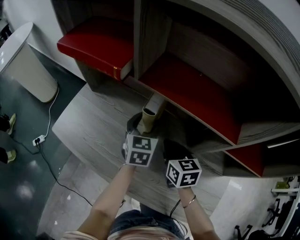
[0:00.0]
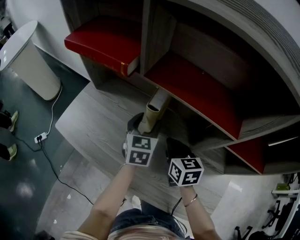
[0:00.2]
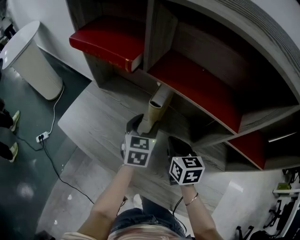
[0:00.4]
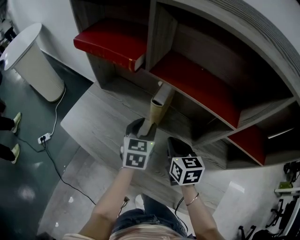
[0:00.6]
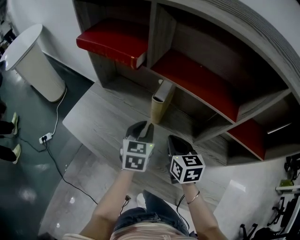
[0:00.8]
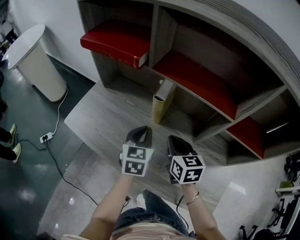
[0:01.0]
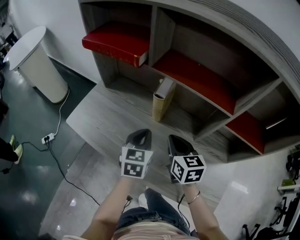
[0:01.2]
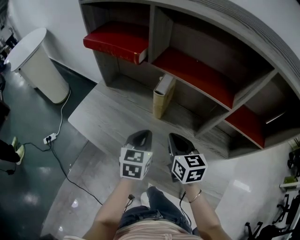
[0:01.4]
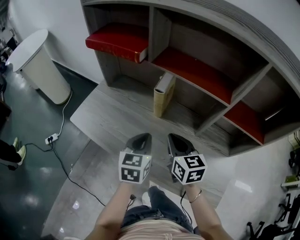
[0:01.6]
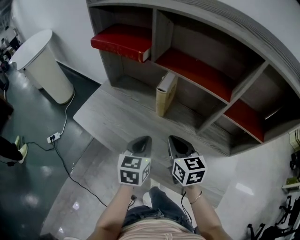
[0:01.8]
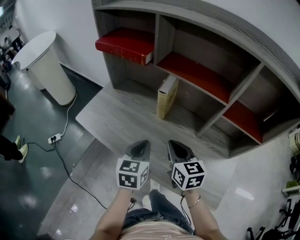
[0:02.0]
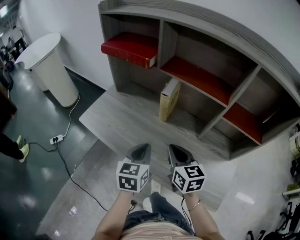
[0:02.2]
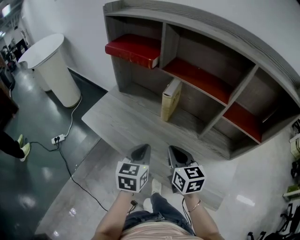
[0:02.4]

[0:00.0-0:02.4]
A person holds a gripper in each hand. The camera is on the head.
0:00.0 to 0:01.2: The left gripper is displaced backward by about 15 cm, and closes up; the right gripper travels backward by approximately 5 cm.
0:01.2 to 0:02.4: Both grippers move backward, about 10 cm.

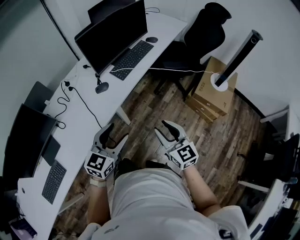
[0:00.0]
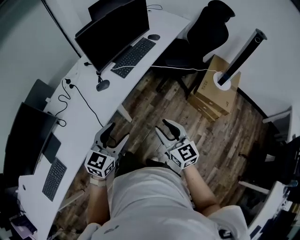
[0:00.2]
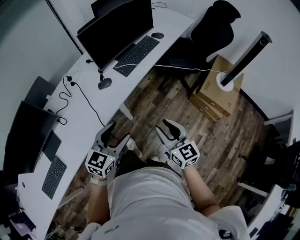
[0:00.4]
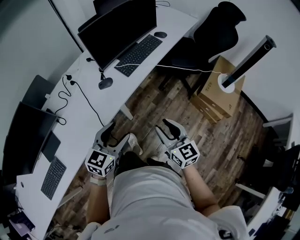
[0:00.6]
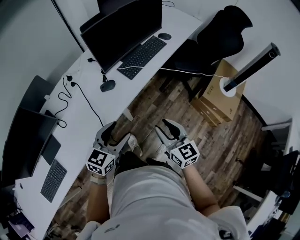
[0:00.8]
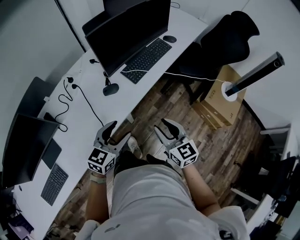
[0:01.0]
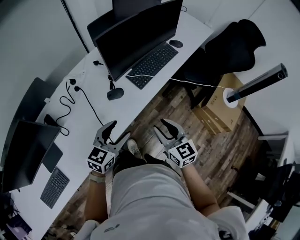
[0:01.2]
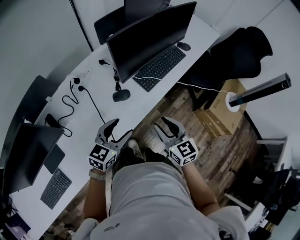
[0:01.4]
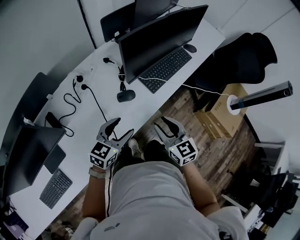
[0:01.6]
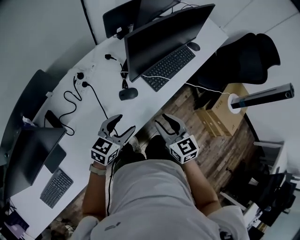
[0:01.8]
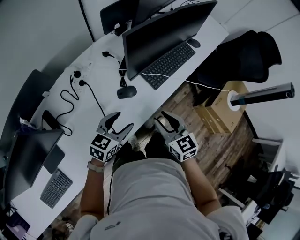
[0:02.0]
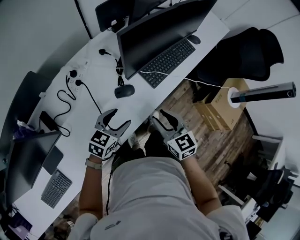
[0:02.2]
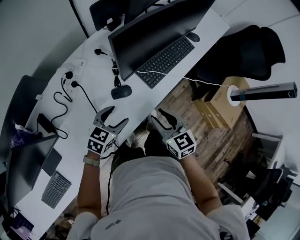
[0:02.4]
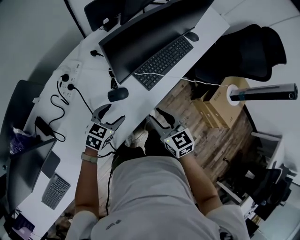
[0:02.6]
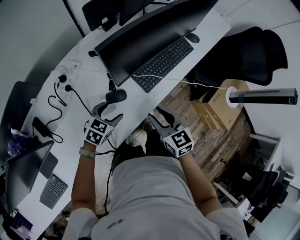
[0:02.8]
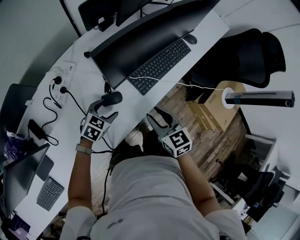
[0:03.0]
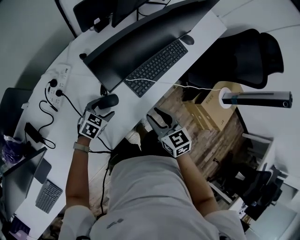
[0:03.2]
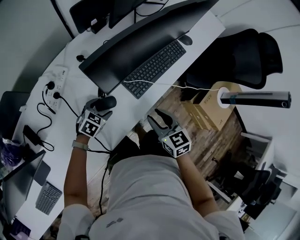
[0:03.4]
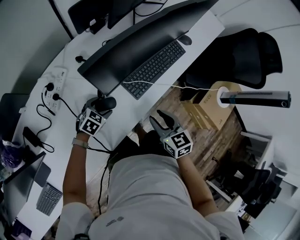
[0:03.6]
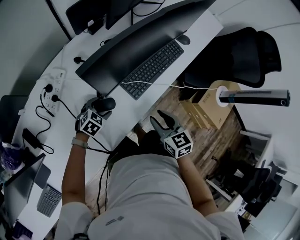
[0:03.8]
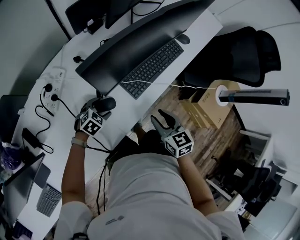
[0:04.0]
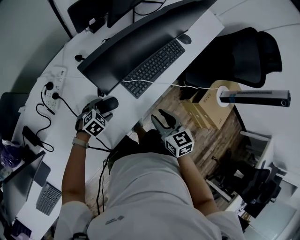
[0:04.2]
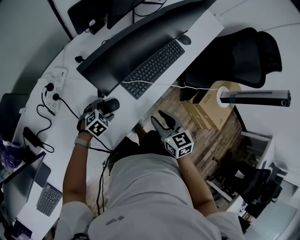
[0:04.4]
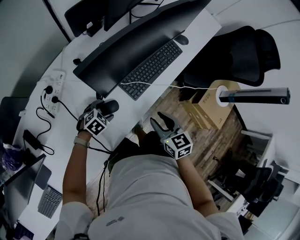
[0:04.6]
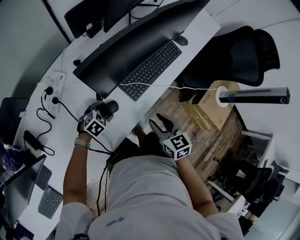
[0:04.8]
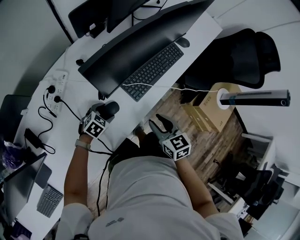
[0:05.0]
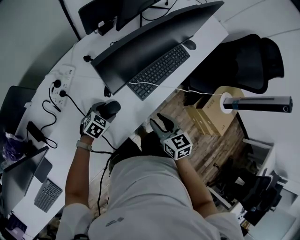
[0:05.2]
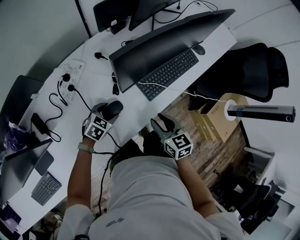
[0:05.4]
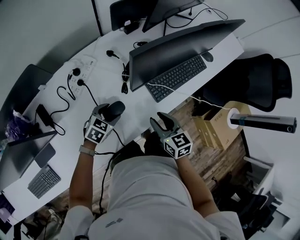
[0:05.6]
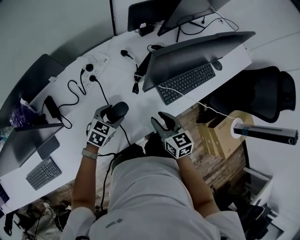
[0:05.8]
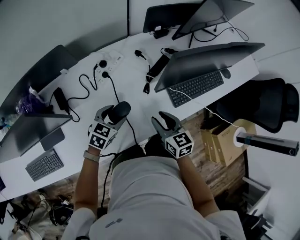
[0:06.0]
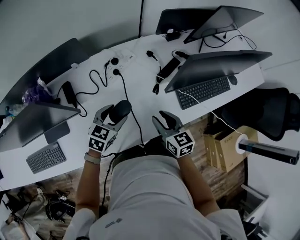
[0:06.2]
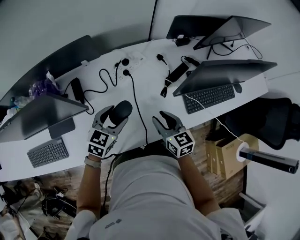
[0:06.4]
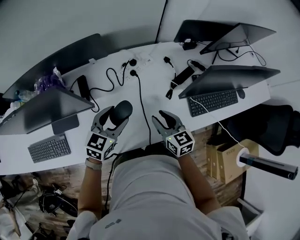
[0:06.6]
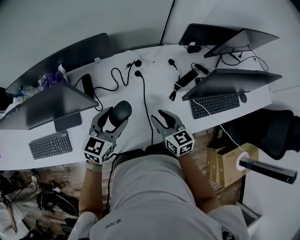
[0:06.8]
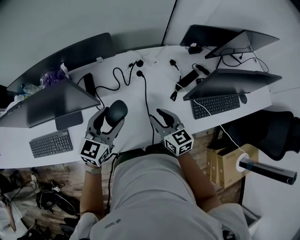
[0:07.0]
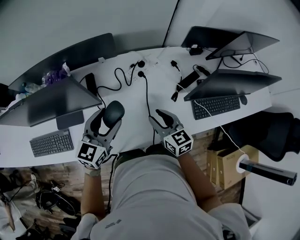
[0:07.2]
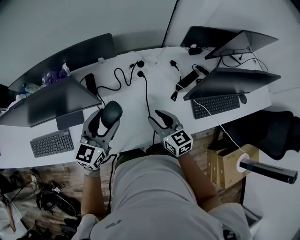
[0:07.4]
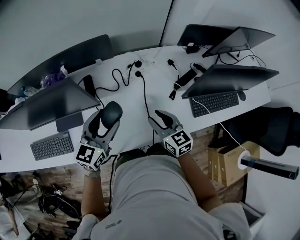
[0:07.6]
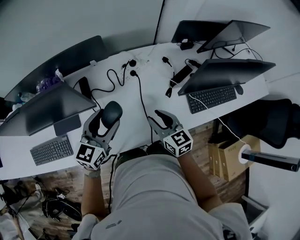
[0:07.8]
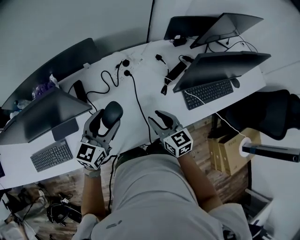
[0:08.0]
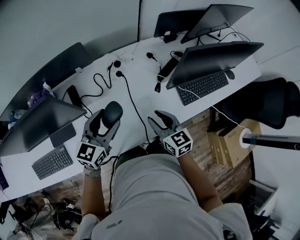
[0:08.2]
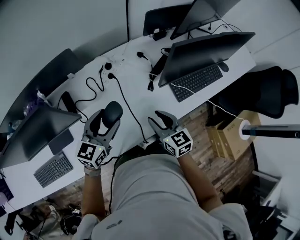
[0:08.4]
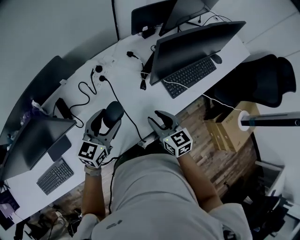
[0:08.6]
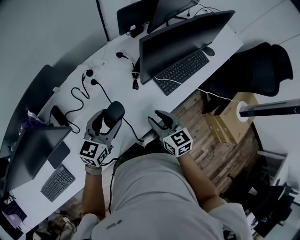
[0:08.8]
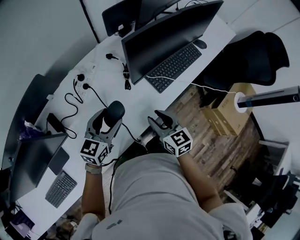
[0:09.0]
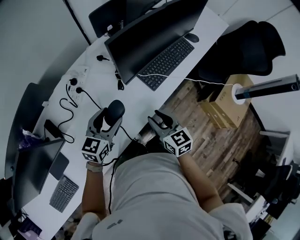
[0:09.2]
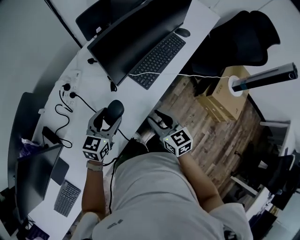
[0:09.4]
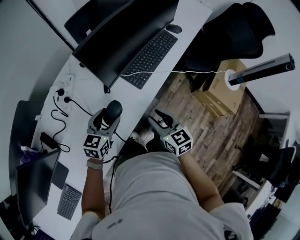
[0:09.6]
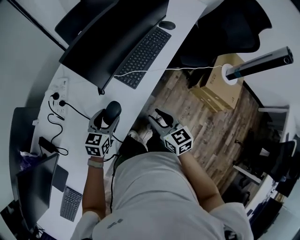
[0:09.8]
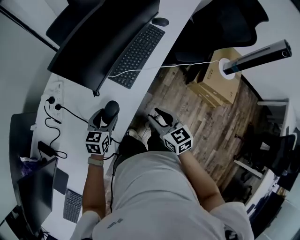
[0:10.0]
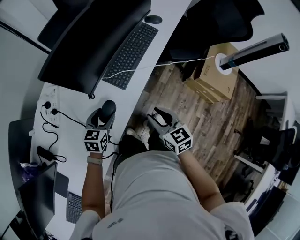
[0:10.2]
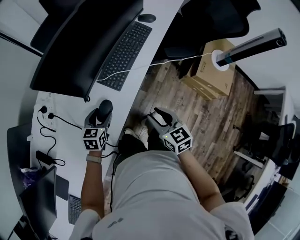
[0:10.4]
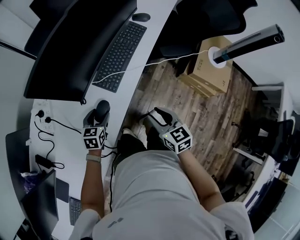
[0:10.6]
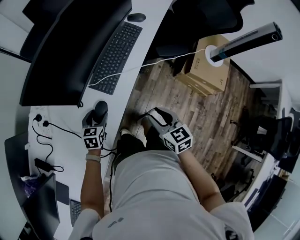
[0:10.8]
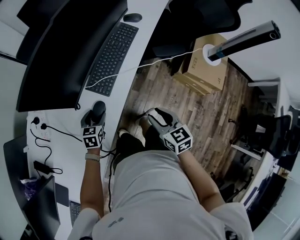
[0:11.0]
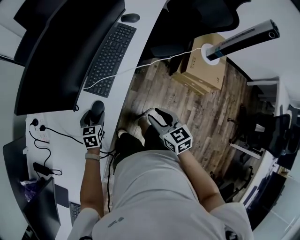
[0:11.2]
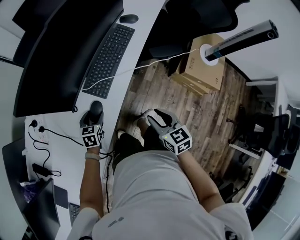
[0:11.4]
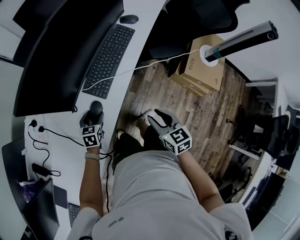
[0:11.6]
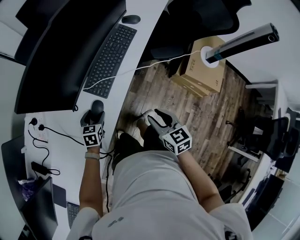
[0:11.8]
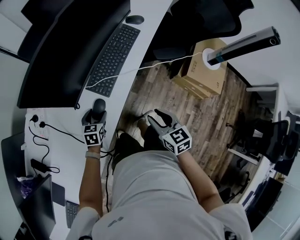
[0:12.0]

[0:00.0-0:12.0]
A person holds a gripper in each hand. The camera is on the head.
0:00.0 to 0:01.6: The left gripper is displaced forward, to the left and downward by some 25 cm. The right gripper moves forward and to the left, about 30 cm.
0:01.6 to 0:03.0: The right gripper heads forward and downward, covering roughly 15 cm, while the left gripper moves downward and forward, roughly 20 cm, and rotates about 30 degrees.
0:03.0 to 0:04.4: The left gripper travels downward by approximately 5 cm, and changes its angle by roughly 20 degrees. The right gripper moves to the right, some 5 cm.
0:04.4 to 0:06.0: The right gripper changes place by roughly 15 cm, and turns by some 20 degrees, while the left gripper changes place by some 20 cm, and swivels roughly 40 degrees.
0:06.0 to 0:07.6: The right gripper heads to the left, covering roughly 15 cm. Meanwhile the left gripper moves upward and to the left, about 20 cm, and angles its fingers upward, by approximately 30 degrees.
0:07.6 to 0:09.0: The right gripper moves roughly 15 cm, and rotates approximately 30 degrees, while the left gripper ends up about 20 cm from where it was, and changes its angle by about 30 degrees.
0:09.0 to 0:10.4: The left gripper heads downward, to the right and forward, covering some 20 cm, and swivels approximately 20 degrees, while the right gripper goes roughly 15 cm to the right, and changes its angle by some 20 degrees.
0:10.4 to 0:12.0: The right gripper travels to the right by roughly 5 cm. Meanwhile the left gripper is displaced downward by about 5 cm.

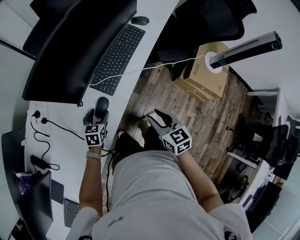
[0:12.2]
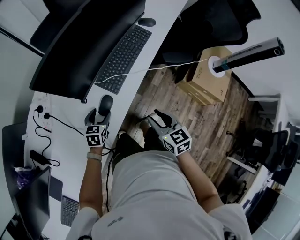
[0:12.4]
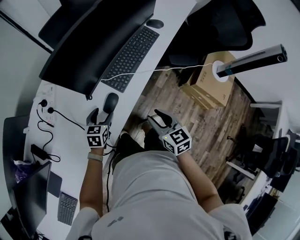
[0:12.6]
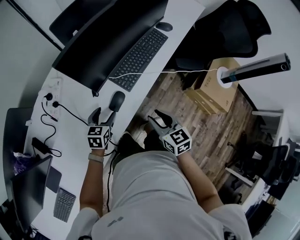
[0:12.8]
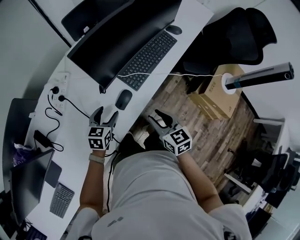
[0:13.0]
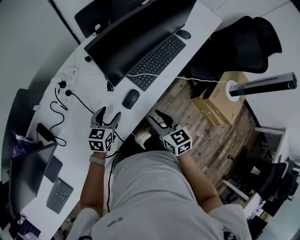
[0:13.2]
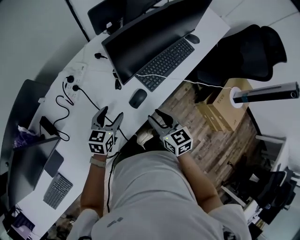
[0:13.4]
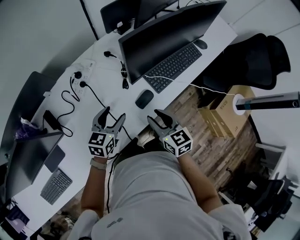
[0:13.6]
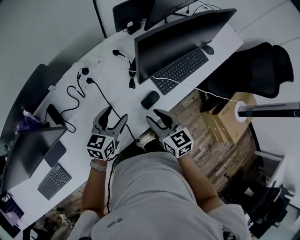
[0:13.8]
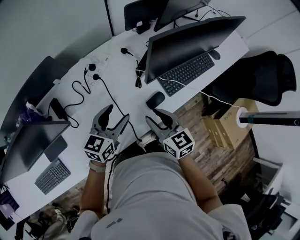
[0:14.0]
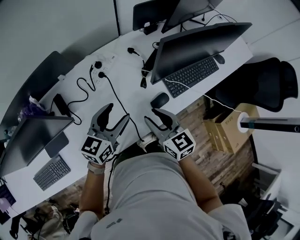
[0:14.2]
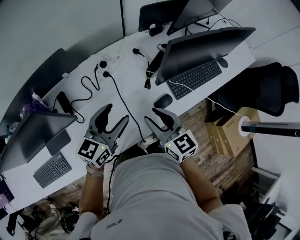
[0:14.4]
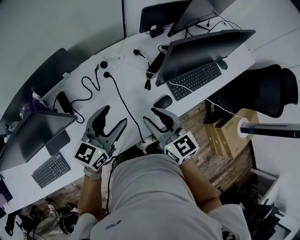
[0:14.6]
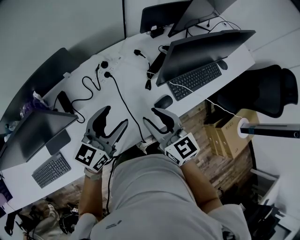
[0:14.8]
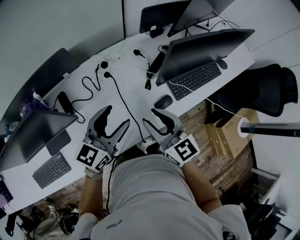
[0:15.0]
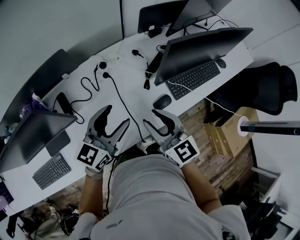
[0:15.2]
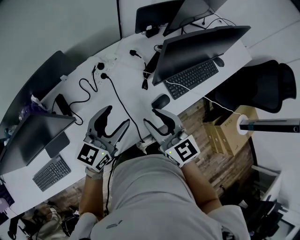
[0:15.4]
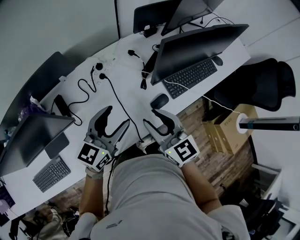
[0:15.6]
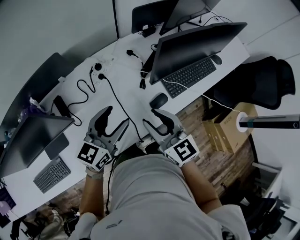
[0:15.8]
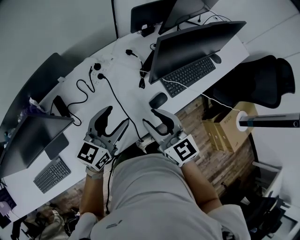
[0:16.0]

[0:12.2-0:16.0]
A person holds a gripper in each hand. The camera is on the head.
0:12.2 to 0:13.4: The right gripper is displaced to the left by about 15 cm, and swivels about 20 degrees. The left gripper shifts roughly 15 cm upward, to the left and backward.
0:13.4 to 0:14.8: The right gripper goes some 20 cm to the left and upward, and changes its angle by roughly 30 degrees, while the left gripper heads upward and to the left, covering some 20 cm, and changes its angle by some 30 degrees.
0:14.8 to 0:16.0: The grippers make only small movements.

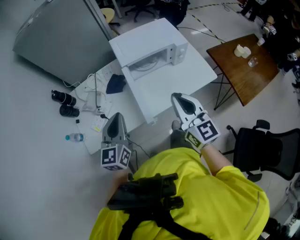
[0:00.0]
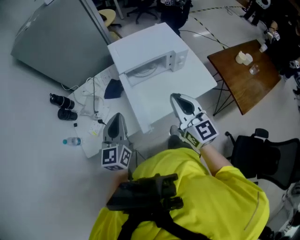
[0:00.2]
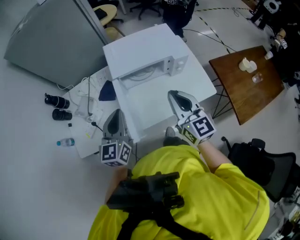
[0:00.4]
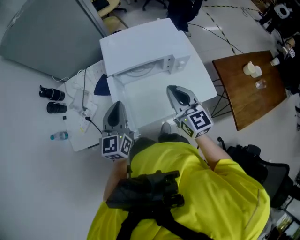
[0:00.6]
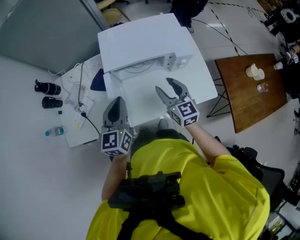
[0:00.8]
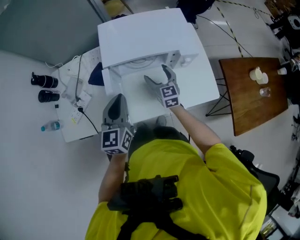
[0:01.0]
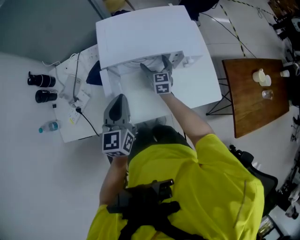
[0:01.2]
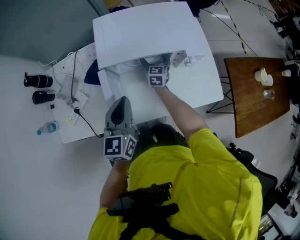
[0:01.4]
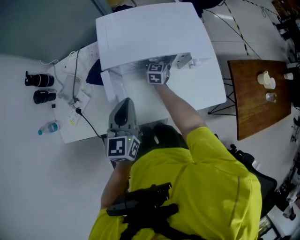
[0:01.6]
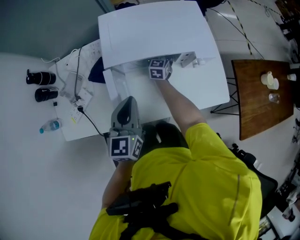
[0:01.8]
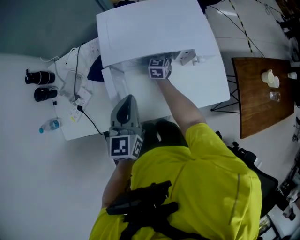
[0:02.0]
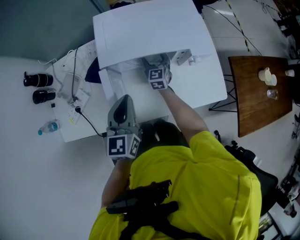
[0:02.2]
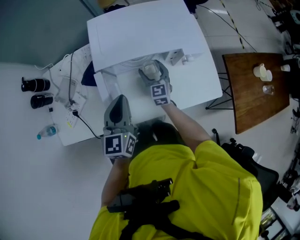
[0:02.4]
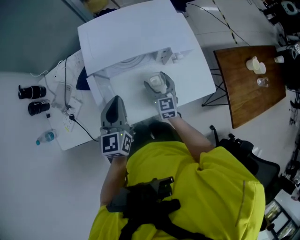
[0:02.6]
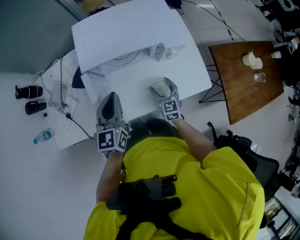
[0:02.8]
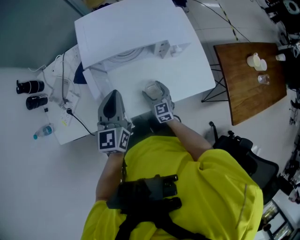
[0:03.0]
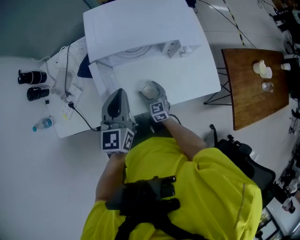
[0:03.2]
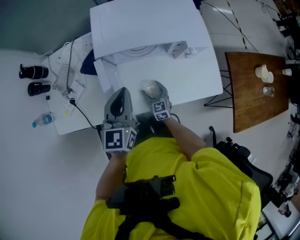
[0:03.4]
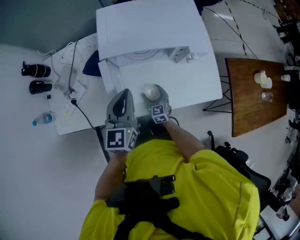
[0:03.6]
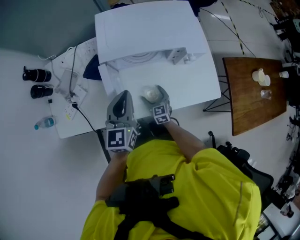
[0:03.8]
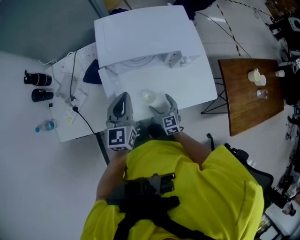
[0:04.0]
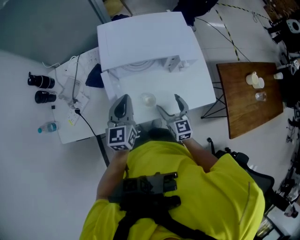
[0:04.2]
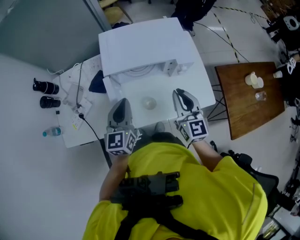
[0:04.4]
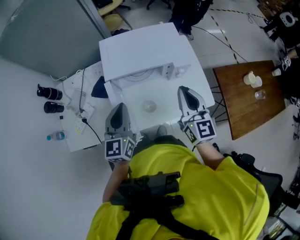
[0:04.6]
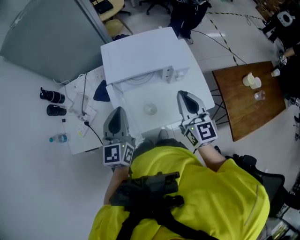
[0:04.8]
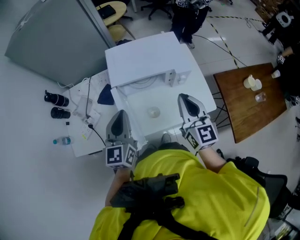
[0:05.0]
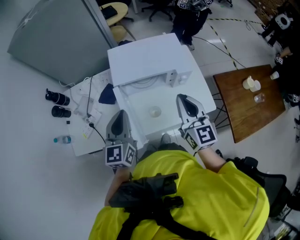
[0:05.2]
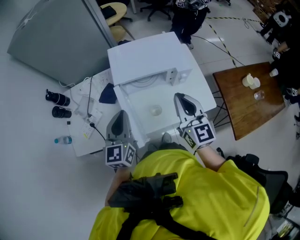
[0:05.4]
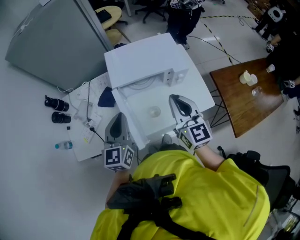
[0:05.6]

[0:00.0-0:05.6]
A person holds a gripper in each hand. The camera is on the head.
0:00.0 to 0:01.4: The right gripper is displaced forward and downward by approximately 50 cm, turns by some 30 degrees, and opens up, while the left gripper heads forward, to the right and downward, covering roughly 25 cm.
0:01.4 to 0:02.8: The right gripper shifts approximately 20 cm backward and to the right.
0:02.8 to 0:04.2: The right gripper travels upward by some 10 cm.
0:04.2 to 0:05.6: The right gripper goes about 25 cm upward, and closes up. Meanwhile the left gripper heads upward and backward, covering roughly 15 cm.
